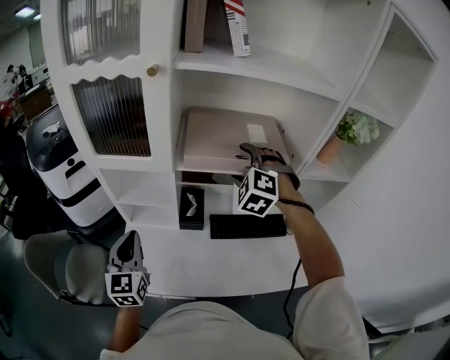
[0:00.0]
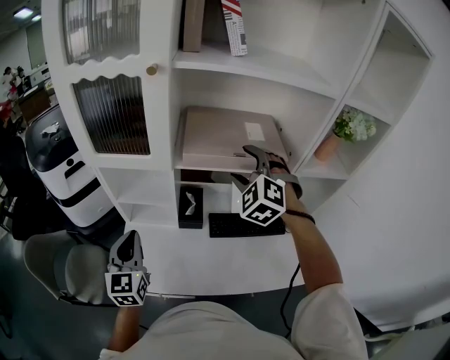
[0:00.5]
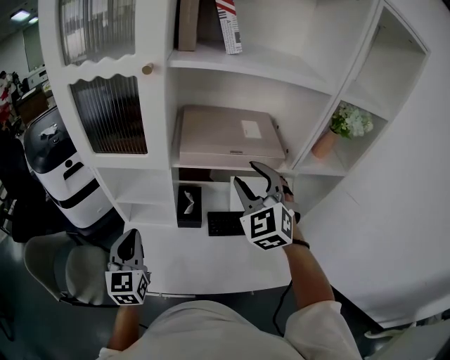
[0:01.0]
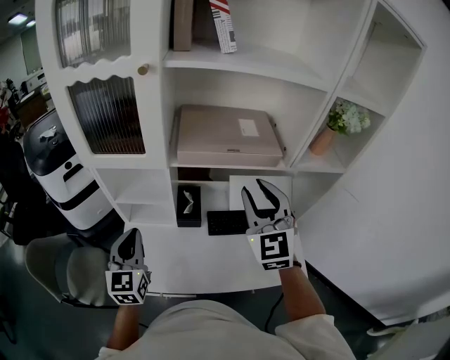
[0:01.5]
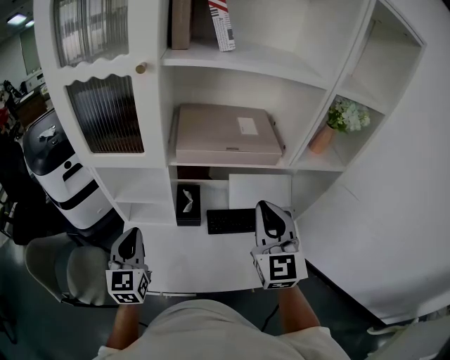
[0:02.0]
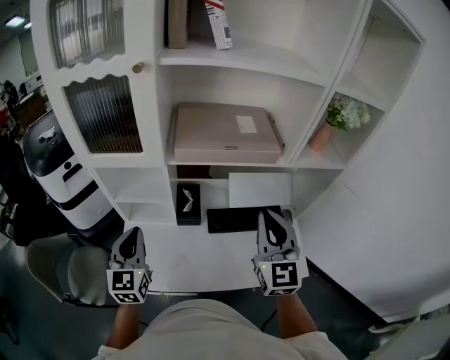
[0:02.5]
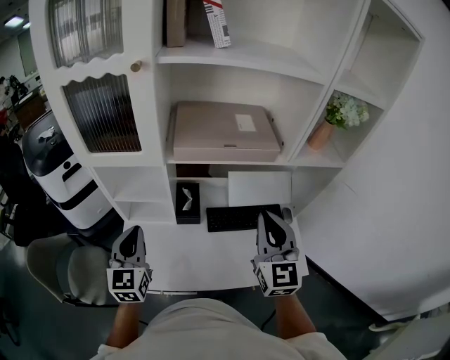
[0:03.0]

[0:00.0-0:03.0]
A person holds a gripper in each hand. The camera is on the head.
0:00.0 to 0:01.5: The right gripper goes approximately 15 cm backward and upward, points its fingers about 30 degrees further upward, and closes.
0:01.5 to 0:03.0: The right gripper travels backward by some 5 cm.

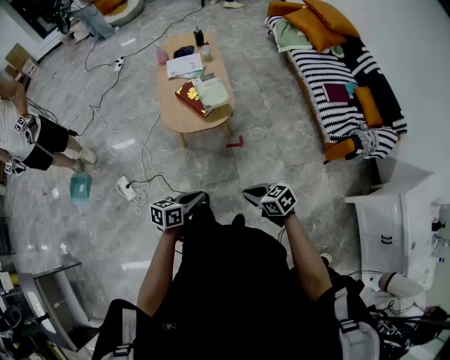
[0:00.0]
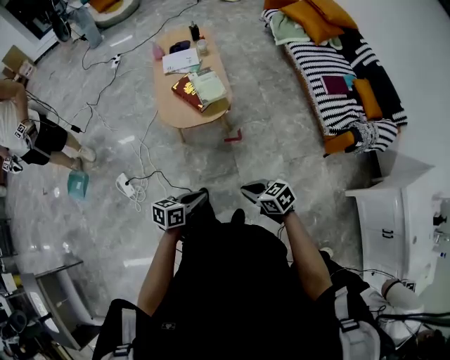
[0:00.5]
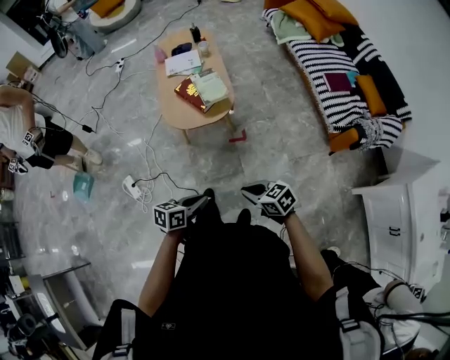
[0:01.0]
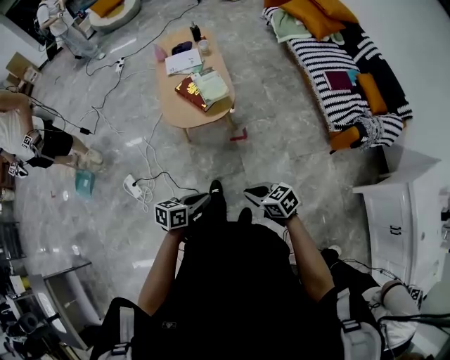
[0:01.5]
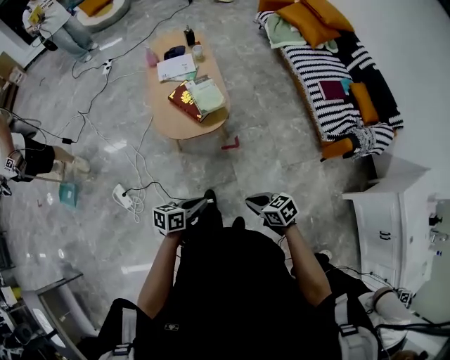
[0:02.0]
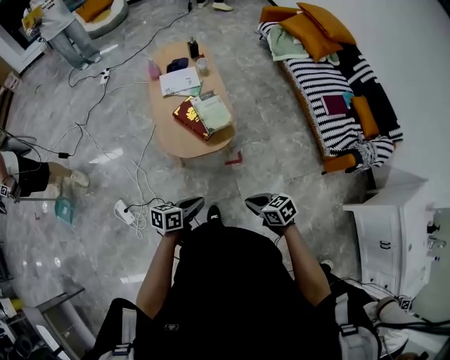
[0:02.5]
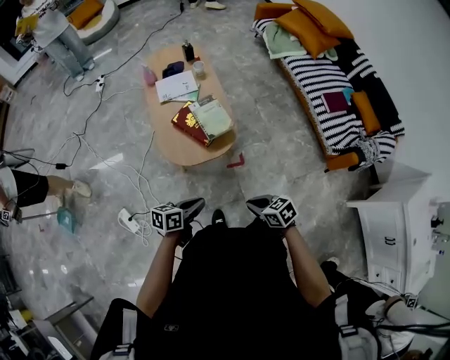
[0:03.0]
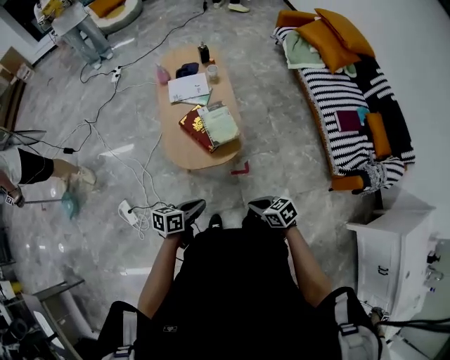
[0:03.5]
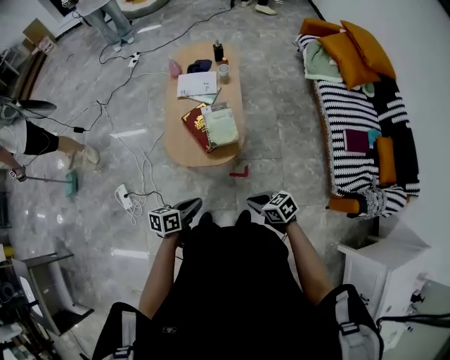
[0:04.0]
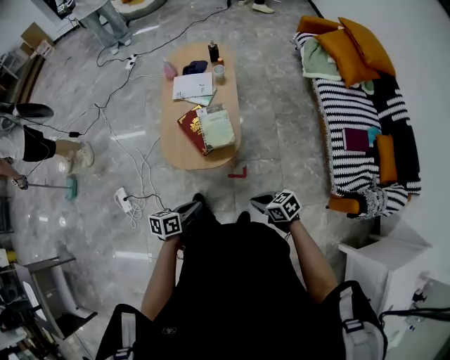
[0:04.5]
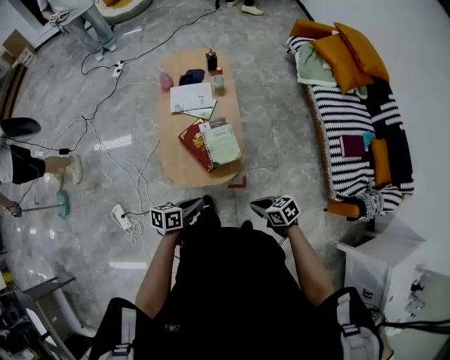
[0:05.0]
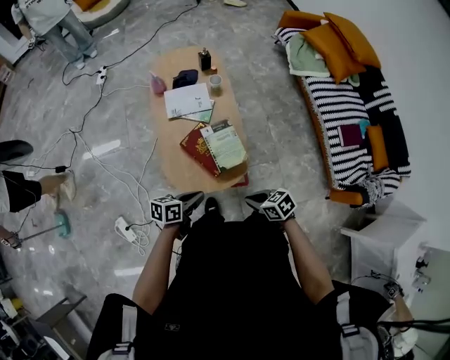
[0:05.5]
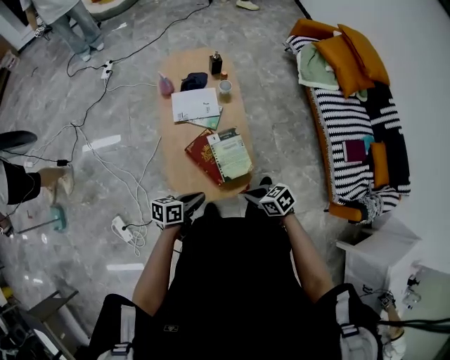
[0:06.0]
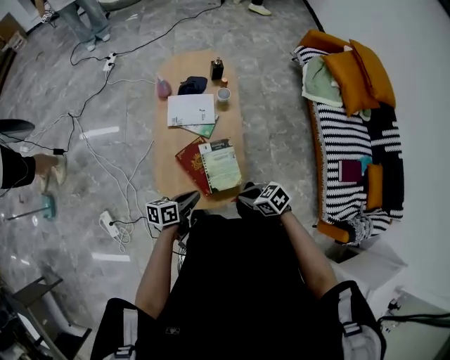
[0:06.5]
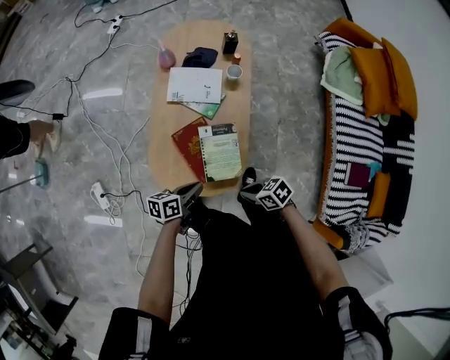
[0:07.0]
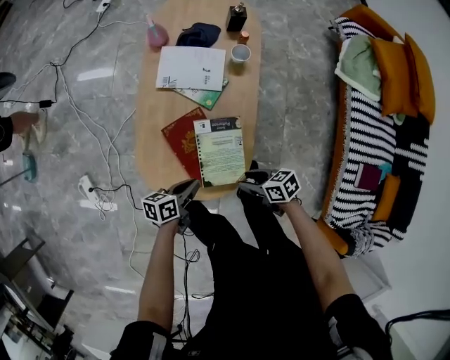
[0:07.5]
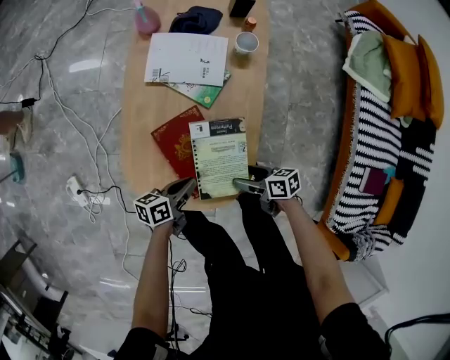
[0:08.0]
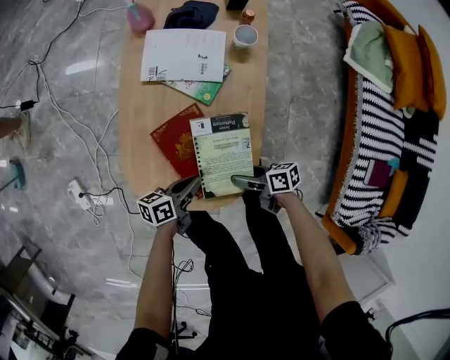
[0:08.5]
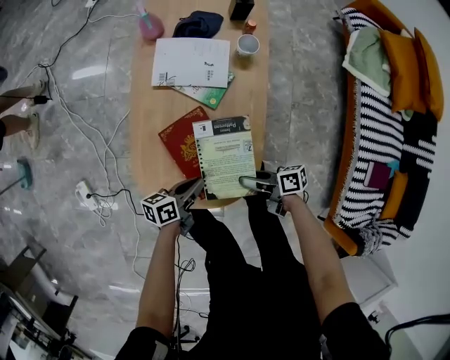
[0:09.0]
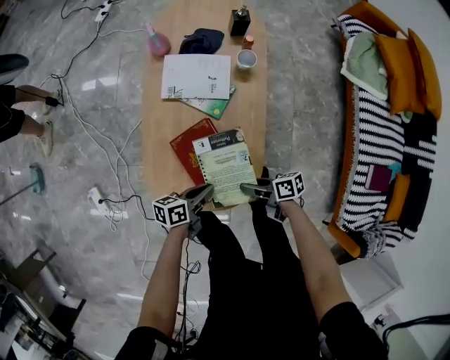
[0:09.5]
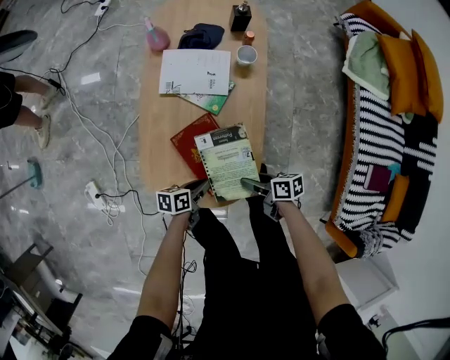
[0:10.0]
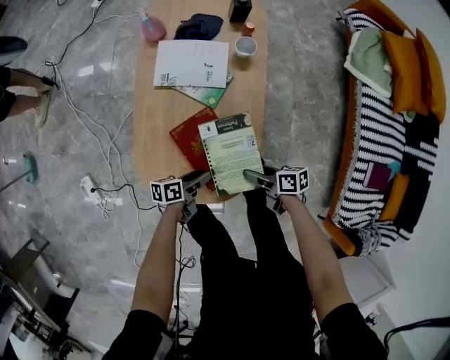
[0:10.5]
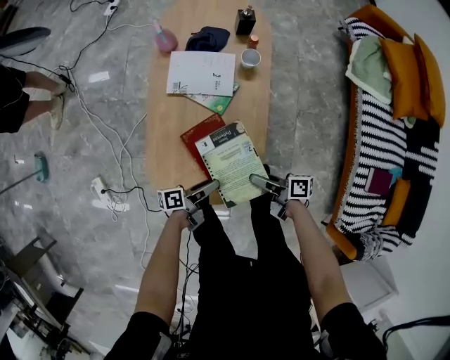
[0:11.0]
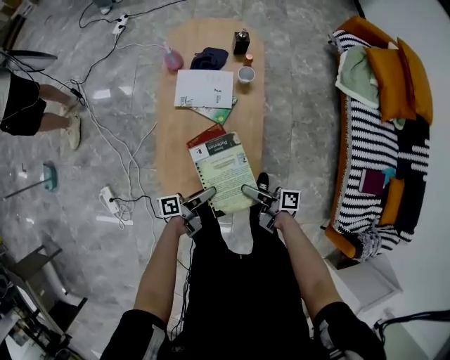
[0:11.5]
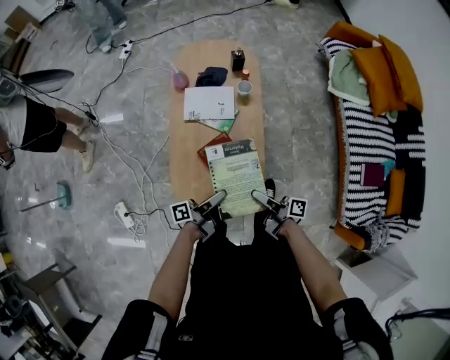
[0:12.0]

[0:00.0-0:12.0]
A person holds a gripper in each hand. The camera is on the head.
0:02.0 to 0:04.0: The right gripper shifts by about 25 cm.
0:04.0 to 0:06.0: The right gripper shifts by about 25 cm.
0:06.0 to 0:08.0: The right gripper moves downward, about 25 cm, changes its angle by approximately 30 degrees, and opens its fingers.
0:08.0 to 0:10.0: The right gripper shifts by about 5 cm, and closes up.
0:10.0 to 0:12.0: The right gripper shifts roughly 20 cm upward, and points its fingers approximately 30 degrees further upward.

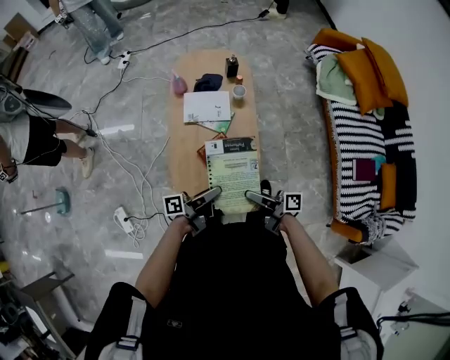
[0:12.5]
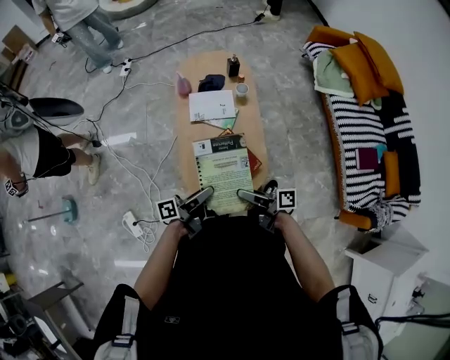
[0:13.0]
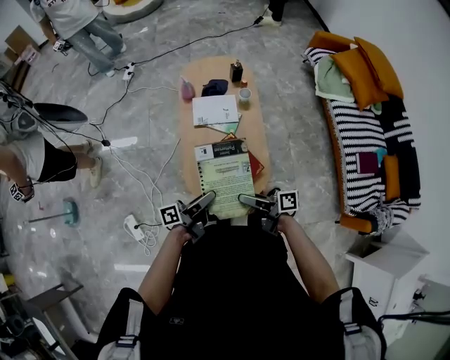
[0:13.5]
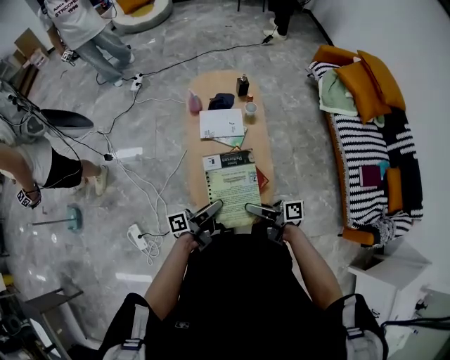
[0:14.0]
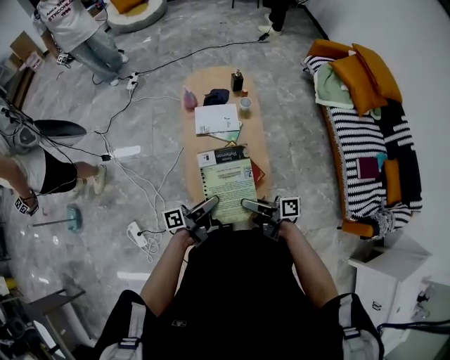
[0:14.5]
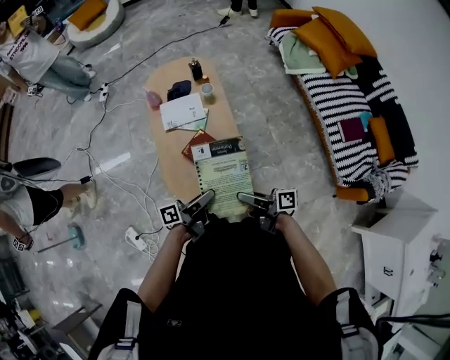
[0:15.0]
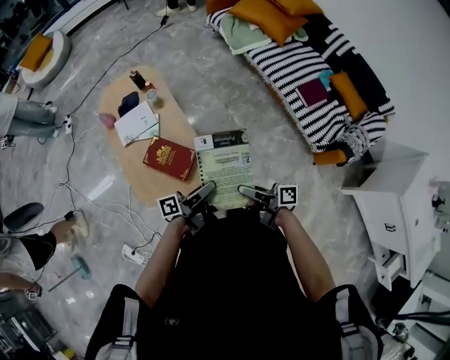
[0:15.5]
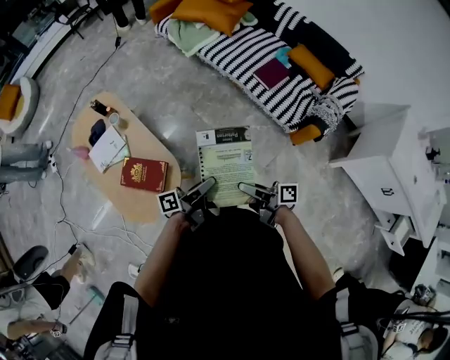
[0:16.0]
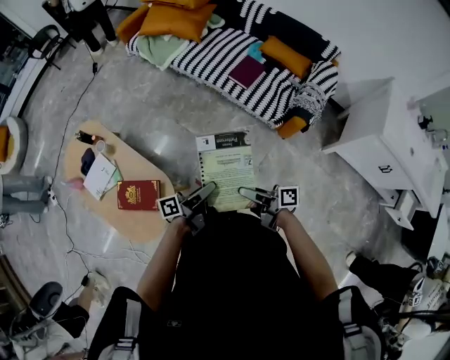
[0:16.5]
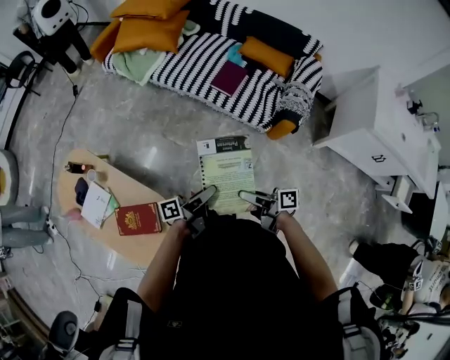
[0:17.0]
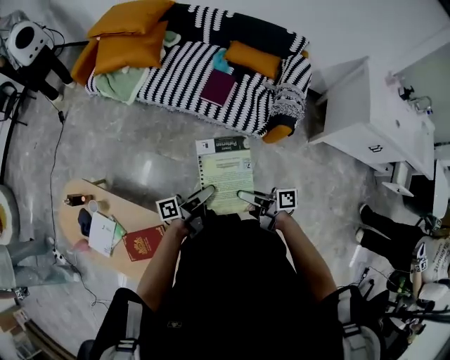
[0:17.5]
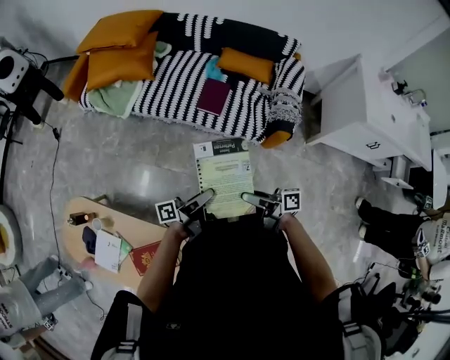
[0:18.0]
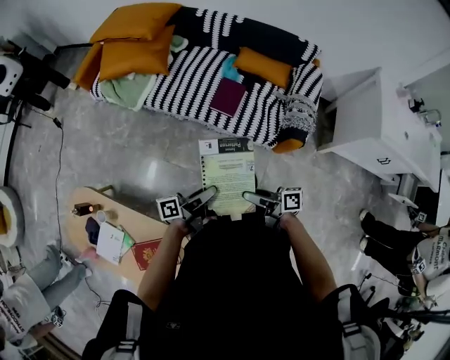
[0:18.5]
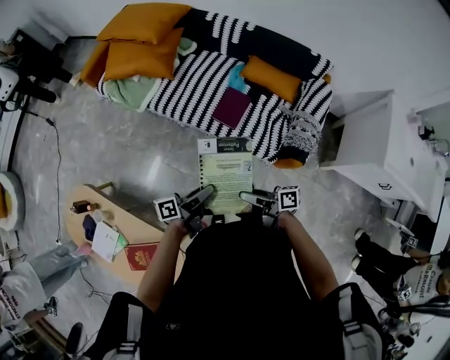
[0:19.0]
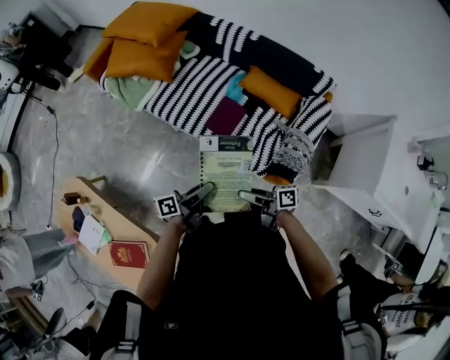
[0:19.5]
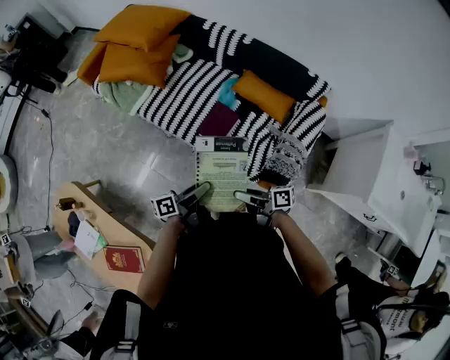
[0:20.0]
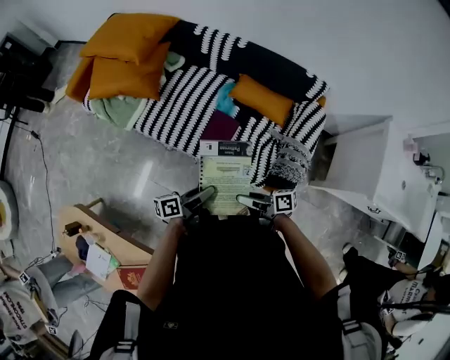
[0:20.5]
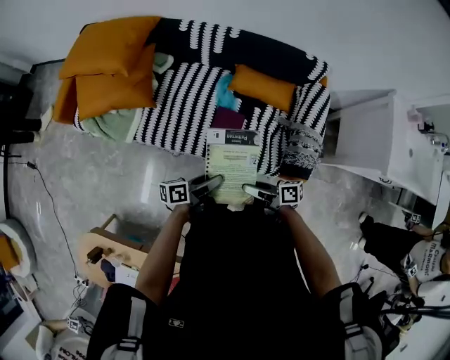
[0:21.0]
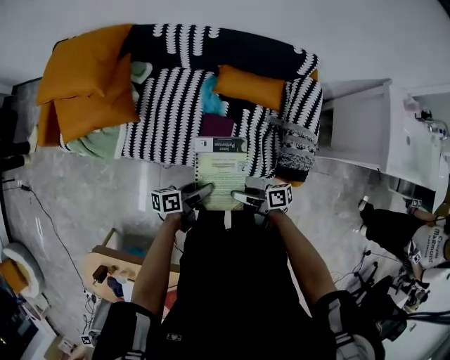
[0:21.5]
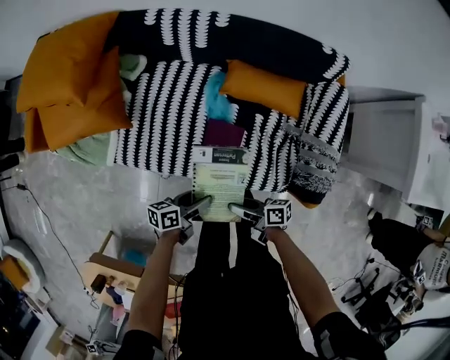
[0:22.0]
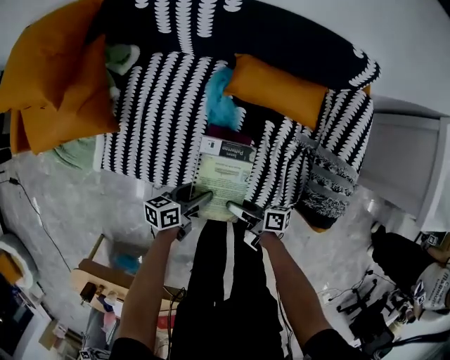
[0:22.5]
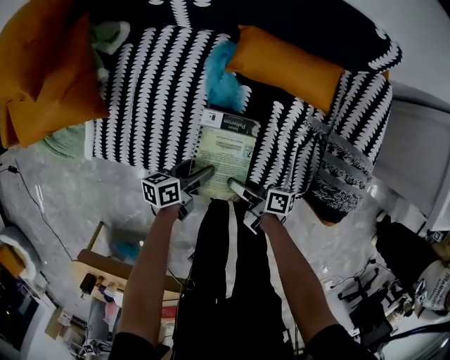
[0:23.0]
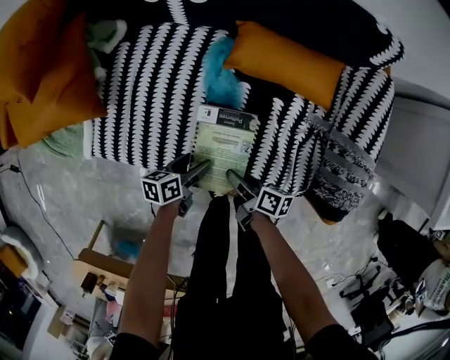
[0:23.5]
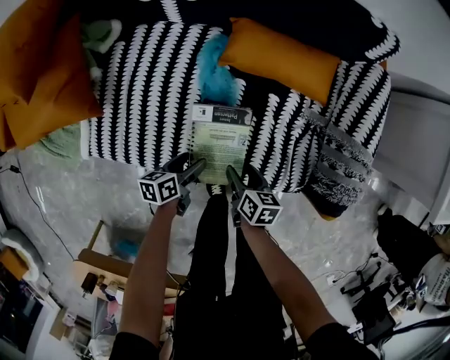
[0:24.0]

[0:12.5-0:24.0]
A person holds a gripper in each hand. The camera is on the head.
0:12.5 to 0:14.5: The right gripper ends up some 10 cm from where it was.
0:14.5 to 0:16.5: The right gripper shifts by about 50 cm, and turns by some 50 degrees.
0:16.5 to 0:18.5: The right gripper changes place by approximately 20 cm.
0:18.5 to 0:20.0: The right gripper shifts by some 20 cm.
0:20.0 to 0:22.0: The right gripper ends up roughly 30 cm from where it was, and swivels roughly 20 degrees.
0:22.0 to 0:24.0: The right gripper moves downward, about 20 cm, and points its fingers about 30 degrees further downward.

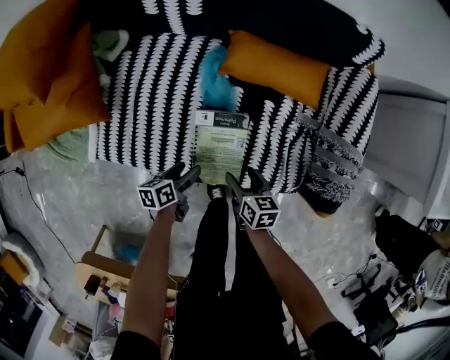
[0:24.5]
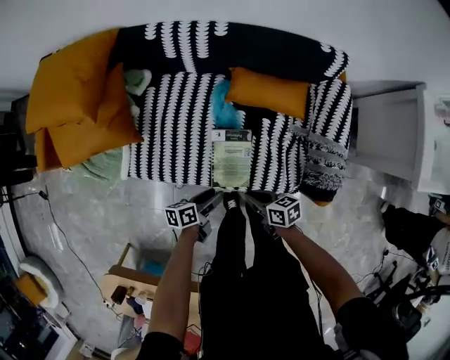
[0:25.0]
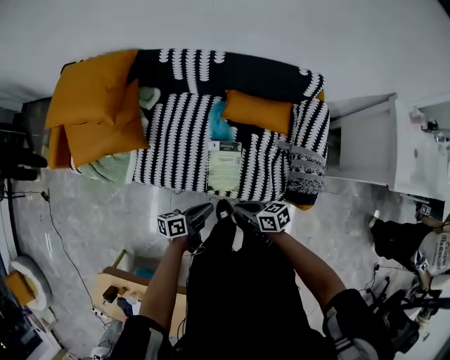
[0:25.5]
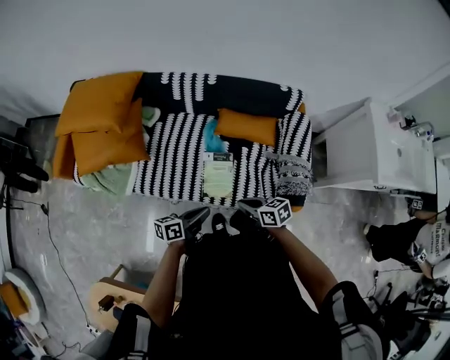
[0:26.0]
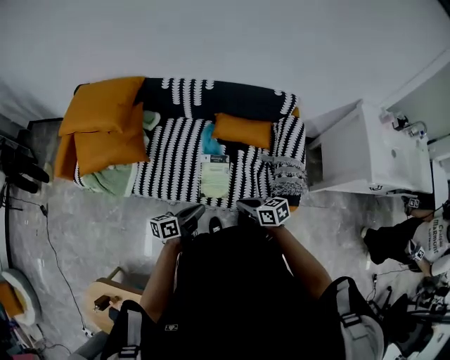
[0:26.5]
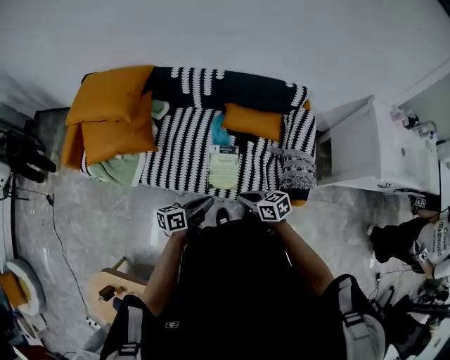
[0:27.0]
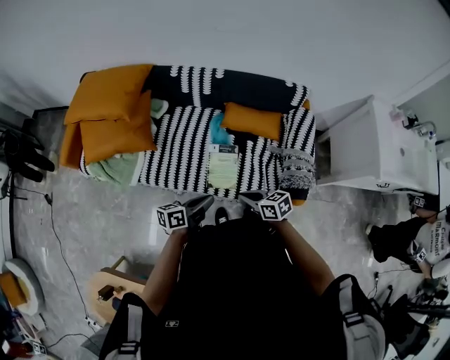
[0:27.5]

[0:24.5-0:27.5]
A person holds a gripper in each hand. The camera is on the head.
0:24.5 to 0:26.0: The right gripper shifts about 30 cm upward, rotates roughly 30 degrees, and closes.
